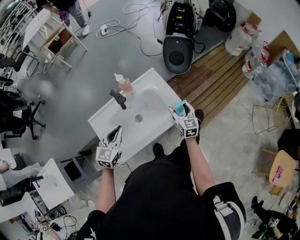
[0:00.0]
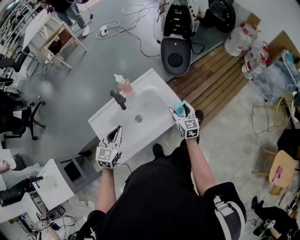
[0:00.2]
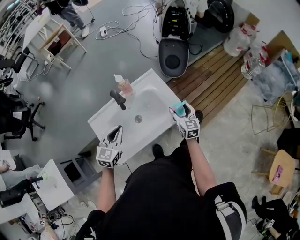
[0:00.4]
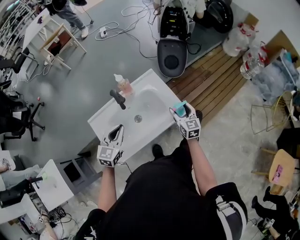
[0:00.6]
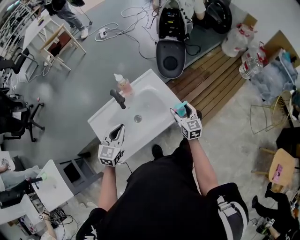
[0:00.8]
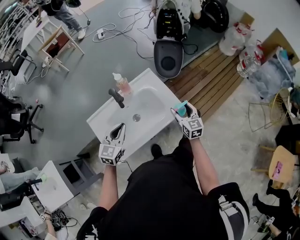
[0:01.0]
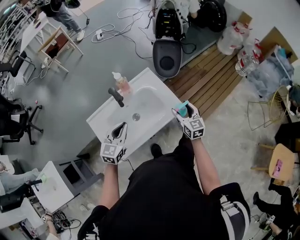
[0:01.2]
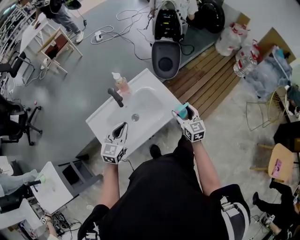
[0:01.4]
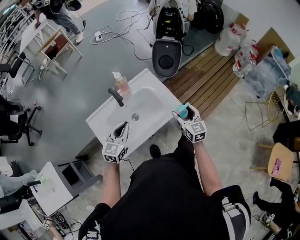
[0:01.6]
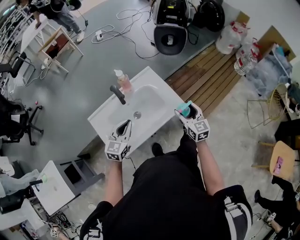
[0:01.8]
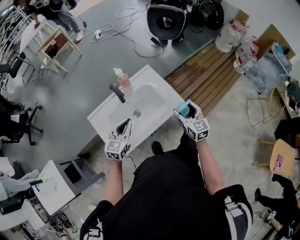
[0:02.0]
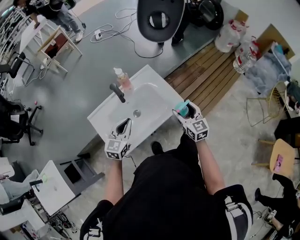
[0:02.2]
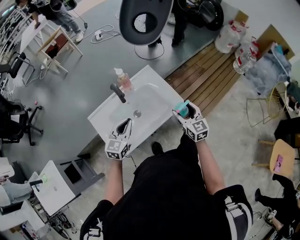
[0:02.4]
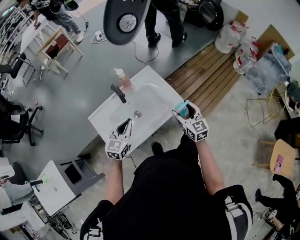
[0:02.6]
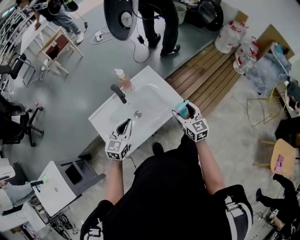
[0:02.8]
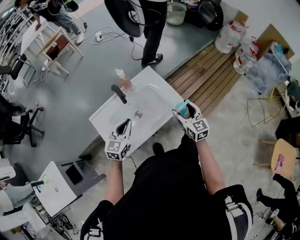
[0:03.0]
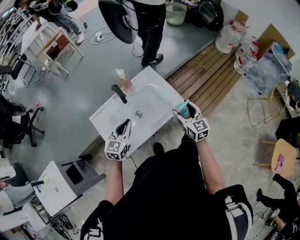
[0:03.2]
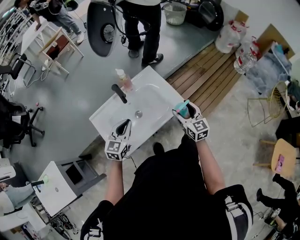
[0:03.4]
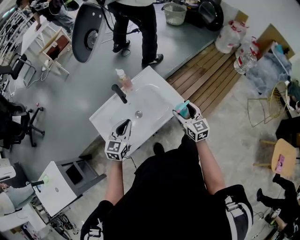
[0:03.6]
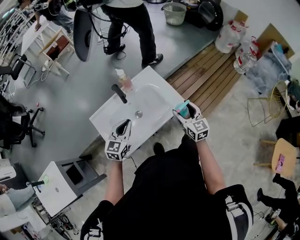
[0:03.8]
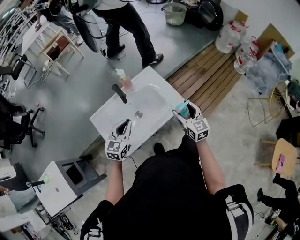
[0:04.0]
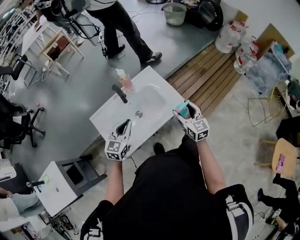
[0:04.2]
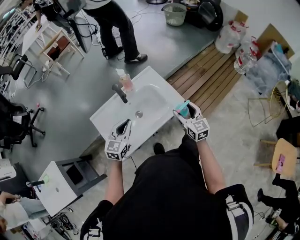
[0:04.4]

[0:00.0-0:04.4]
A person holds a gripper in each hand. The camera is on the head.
0:00.0 to 0:01.4: The right gripper shifts roughly 10 cm backward and upward.
0:01.4 to 0:03.0: The right gripper shifts by roughly 5 cm.
0:03.0 to 0:04.4: Both grippers stay about where they are.

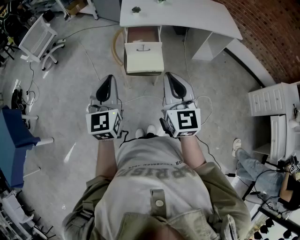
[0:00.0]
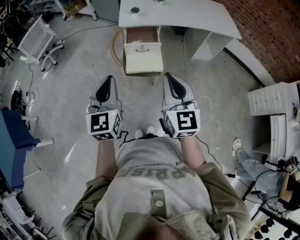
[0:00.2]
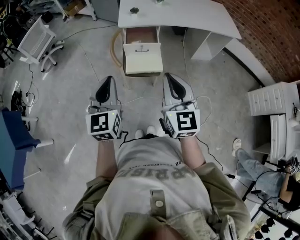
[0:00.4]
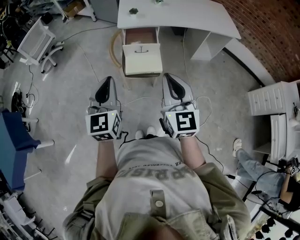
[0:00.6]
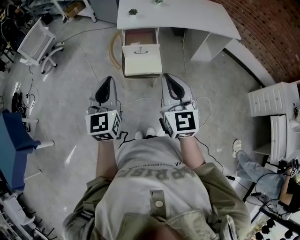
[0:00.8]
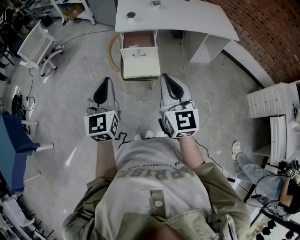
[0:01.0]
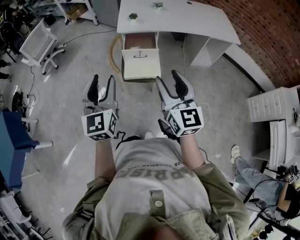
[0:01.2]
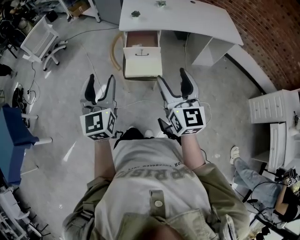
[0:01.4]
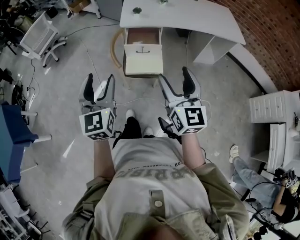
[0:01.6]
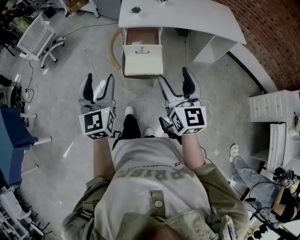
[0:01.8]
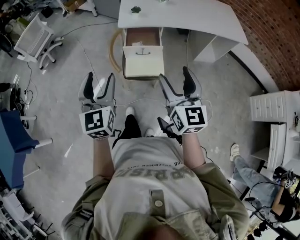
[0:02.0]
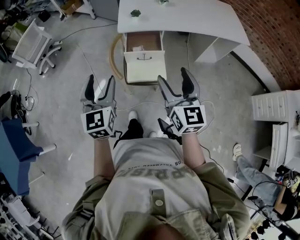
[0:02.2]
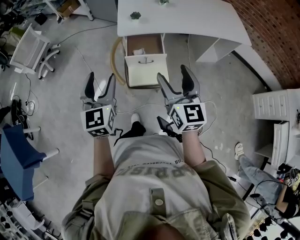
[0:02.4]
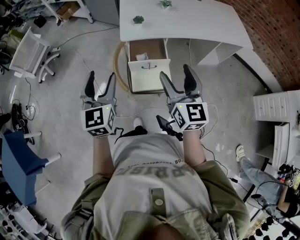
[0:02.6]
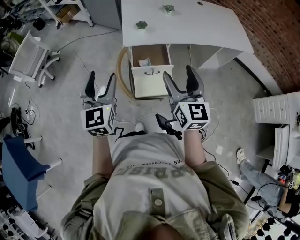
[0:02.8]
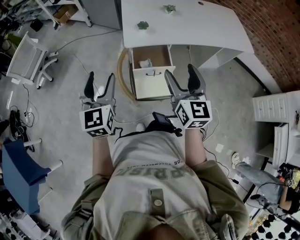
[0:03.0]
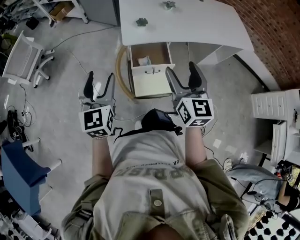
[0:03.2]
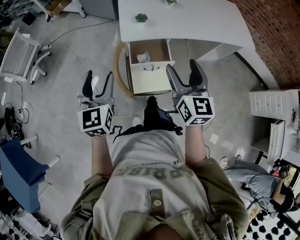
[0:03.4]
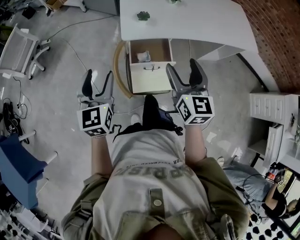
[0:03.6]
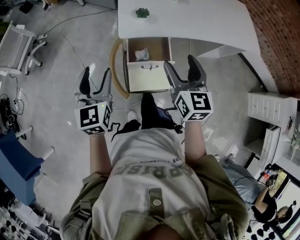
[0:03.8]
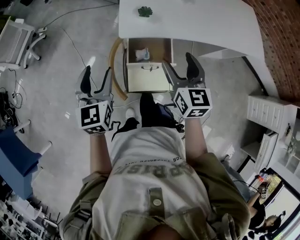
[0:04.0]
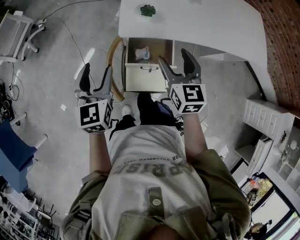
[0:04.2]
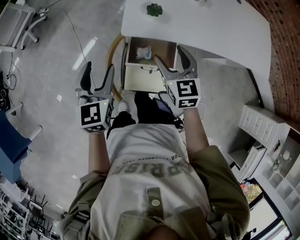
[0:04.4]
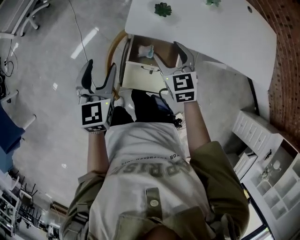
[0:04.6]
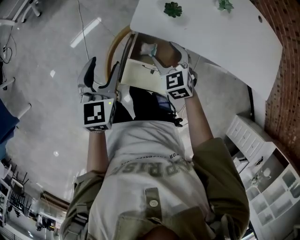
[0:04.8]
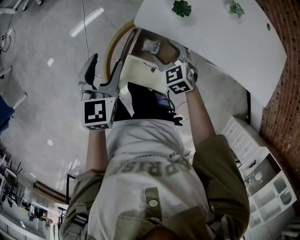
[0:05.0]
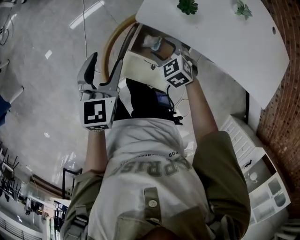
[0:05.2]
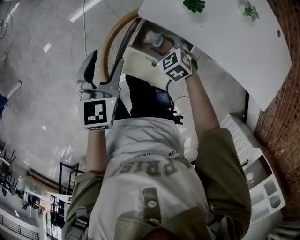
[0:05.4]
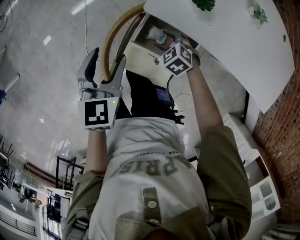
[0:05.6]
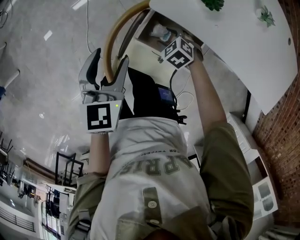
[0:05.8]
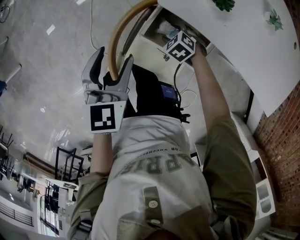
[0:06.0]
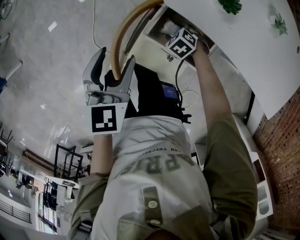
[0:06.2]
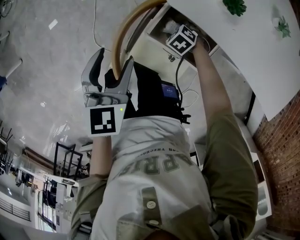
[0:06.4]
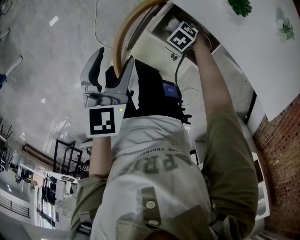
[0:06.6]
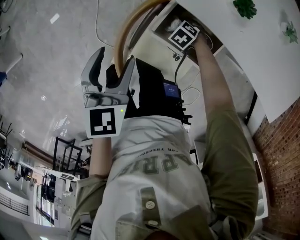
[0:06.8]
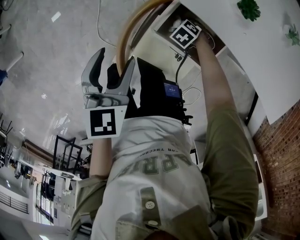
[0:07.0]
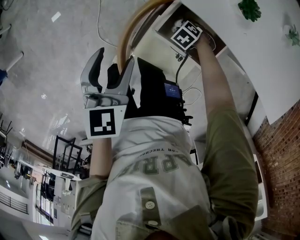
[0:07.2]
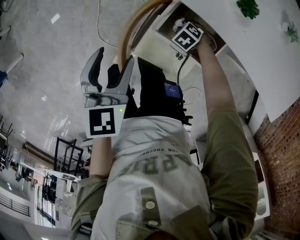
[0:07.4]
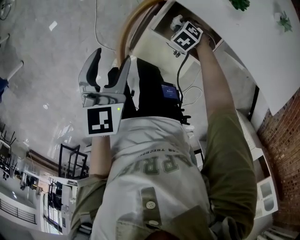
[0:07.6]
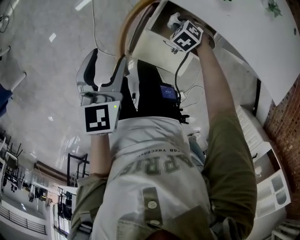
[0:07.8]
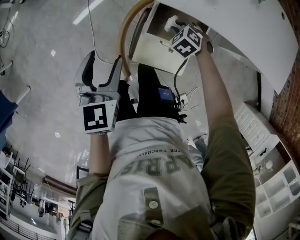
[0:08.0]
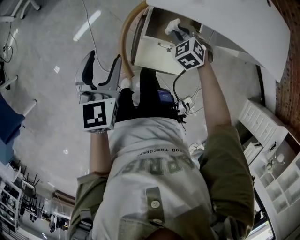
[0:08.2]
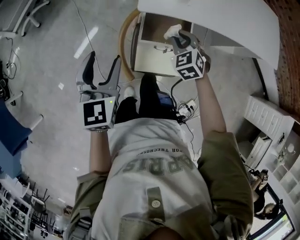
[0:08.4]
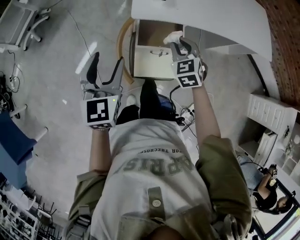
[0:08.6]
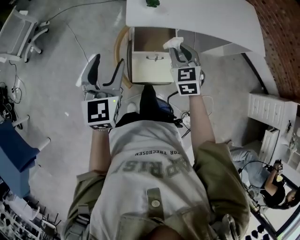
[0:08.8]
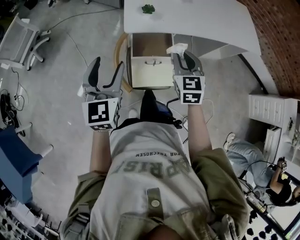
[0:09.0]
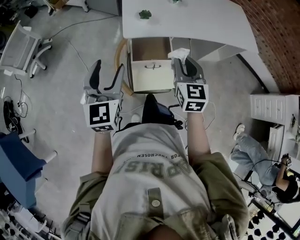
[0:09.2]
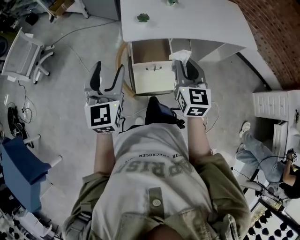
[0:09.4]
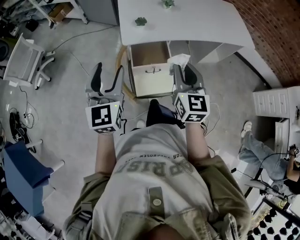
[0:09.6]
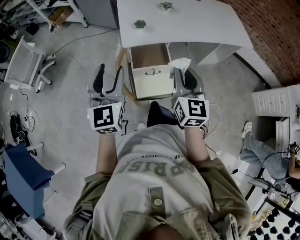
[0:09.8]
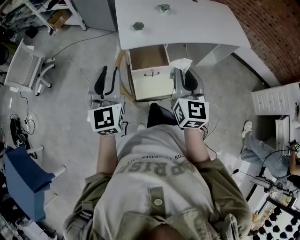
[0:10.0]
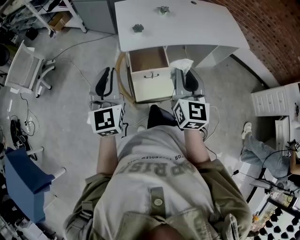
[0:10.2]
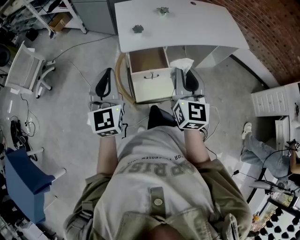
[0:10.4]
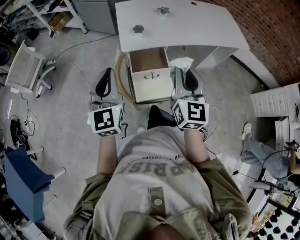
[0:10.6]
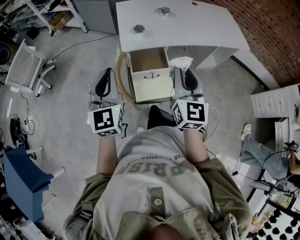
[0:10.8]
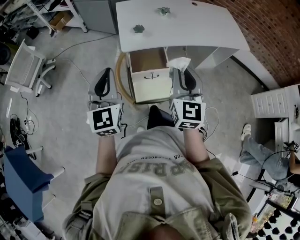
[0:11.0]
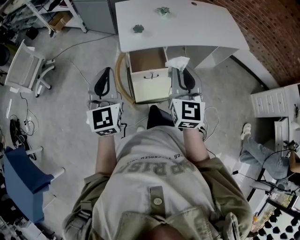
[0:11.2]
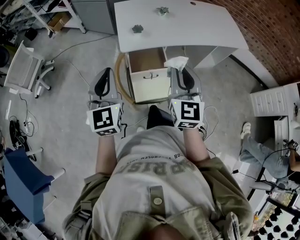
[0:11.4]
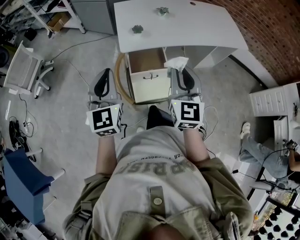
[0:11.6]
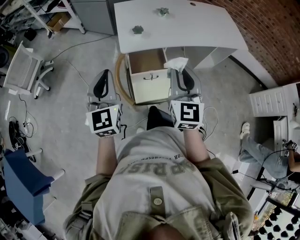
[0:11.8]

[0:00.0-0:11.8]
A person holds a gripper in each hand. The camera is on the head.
0:00.0 to 0:01.4: The right gripper ends up approximately 5 cm from where it was, and opens up. The left gripper opens its fingers.
0:01.4 to 0:03.0: The two grippers go some 30 cm forward.
0:03.0 to 0:04.4: The two grippers go some 25 cm forward and downward. The right gripper rotates some 30 degrees. Meanwhile the left gripper rotates about 20 degrees.
0:04.4 to 0:06.0: The right gripper heads downward, covering some 35 cm, and points its fingers approximately 50 degrees further downward, while the left gripper heads downward, covering roughly 10 cm.
0:06.0 to 0:07.4: The right gripper is displaced downward by some 5 cm, and closes.
0:07.4 to 0:08.8: The right gripper shifts roughly 40 cm upward, and tips its fingers upward by roughly 60 degrees. Meanwhile the left gripper shifts approximately 20 cm upward, and rotates about 40 degrees.
0:08.8 to 0:10.4: The right gripper heads upward and backward, covering some 20 cm, and points its fingers some 30 degrees further upward; the left gripper heads upward, covering about 10 cm, and closes.
0:10.4 to 0:11.8: The grippers move only a little.

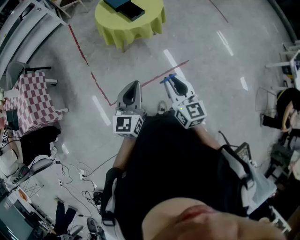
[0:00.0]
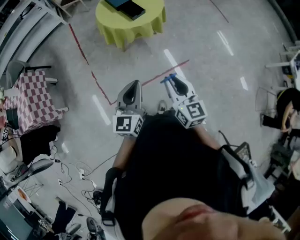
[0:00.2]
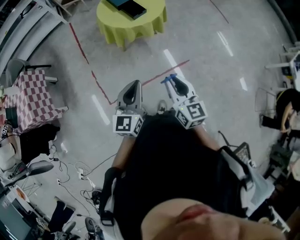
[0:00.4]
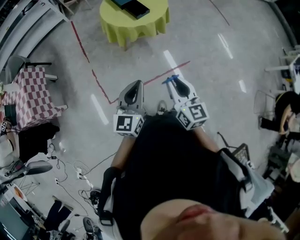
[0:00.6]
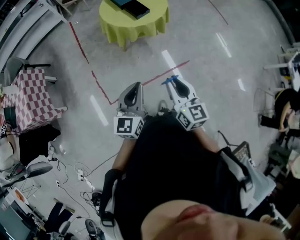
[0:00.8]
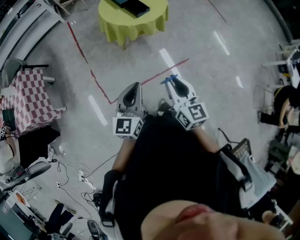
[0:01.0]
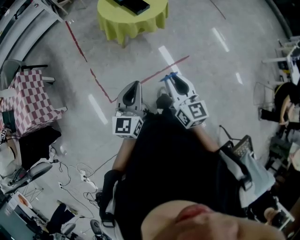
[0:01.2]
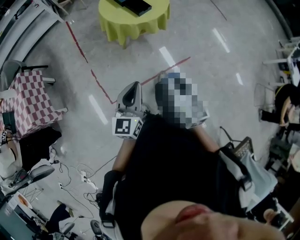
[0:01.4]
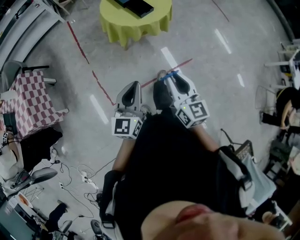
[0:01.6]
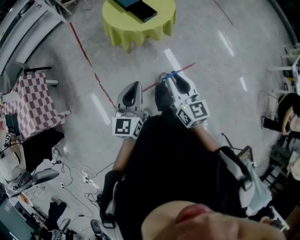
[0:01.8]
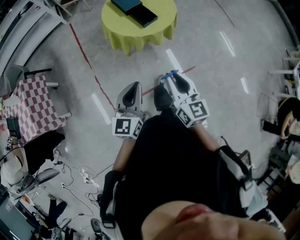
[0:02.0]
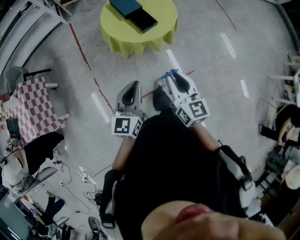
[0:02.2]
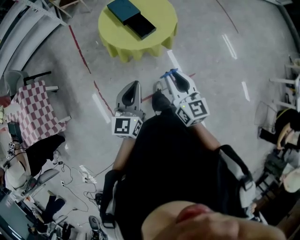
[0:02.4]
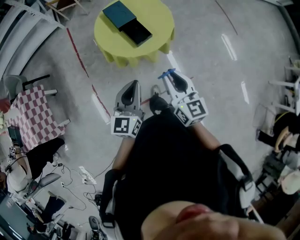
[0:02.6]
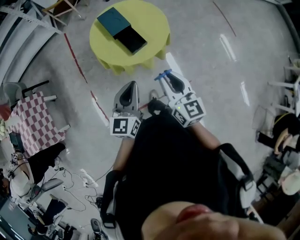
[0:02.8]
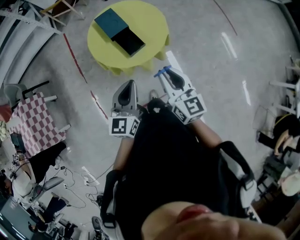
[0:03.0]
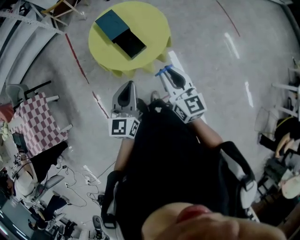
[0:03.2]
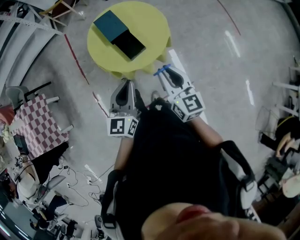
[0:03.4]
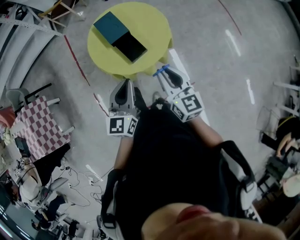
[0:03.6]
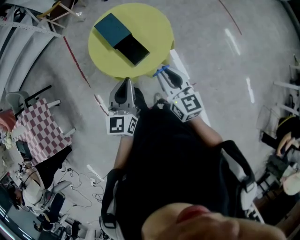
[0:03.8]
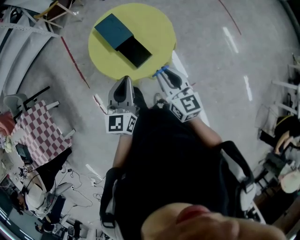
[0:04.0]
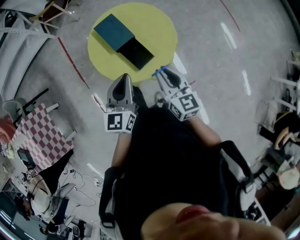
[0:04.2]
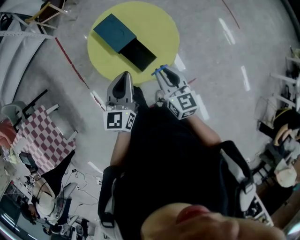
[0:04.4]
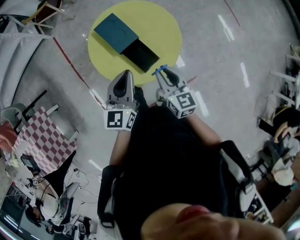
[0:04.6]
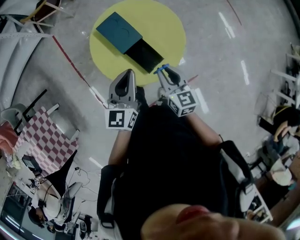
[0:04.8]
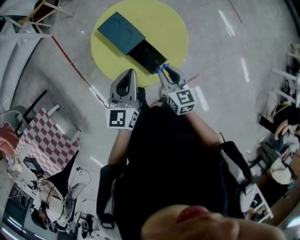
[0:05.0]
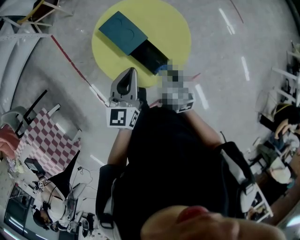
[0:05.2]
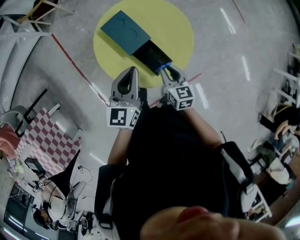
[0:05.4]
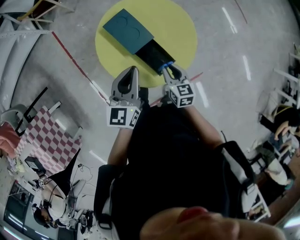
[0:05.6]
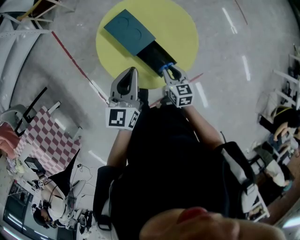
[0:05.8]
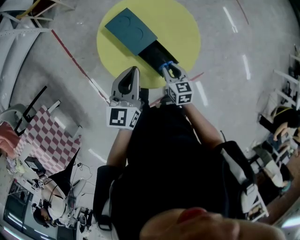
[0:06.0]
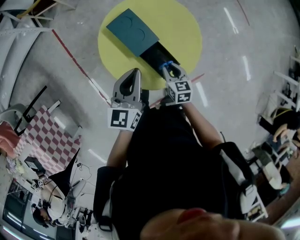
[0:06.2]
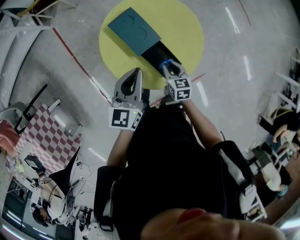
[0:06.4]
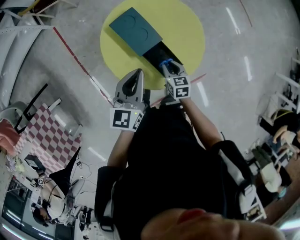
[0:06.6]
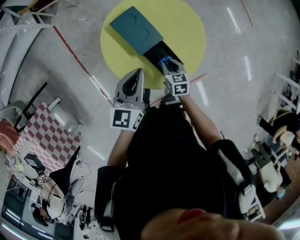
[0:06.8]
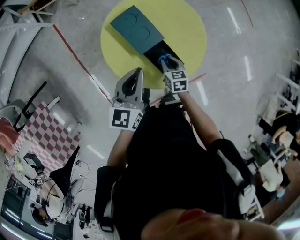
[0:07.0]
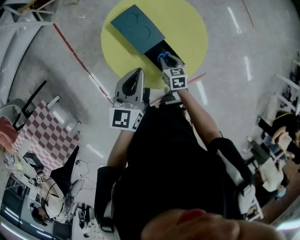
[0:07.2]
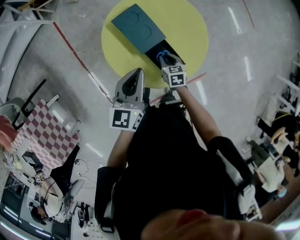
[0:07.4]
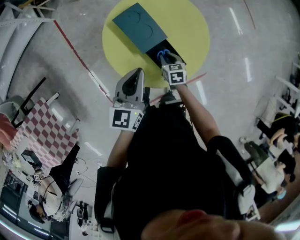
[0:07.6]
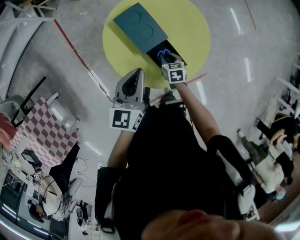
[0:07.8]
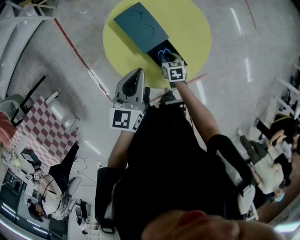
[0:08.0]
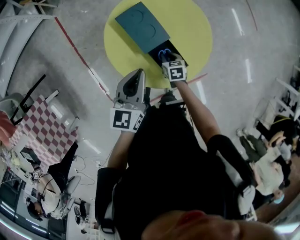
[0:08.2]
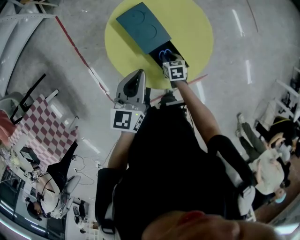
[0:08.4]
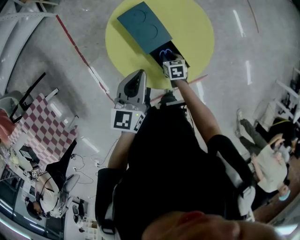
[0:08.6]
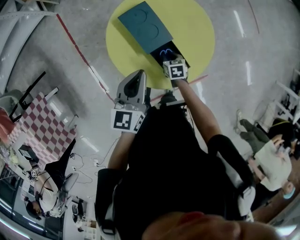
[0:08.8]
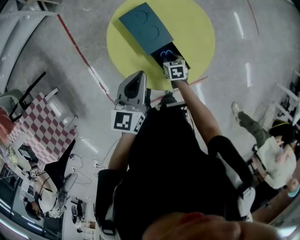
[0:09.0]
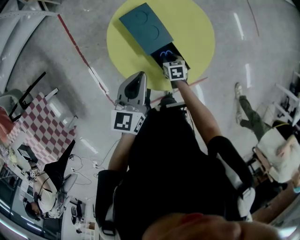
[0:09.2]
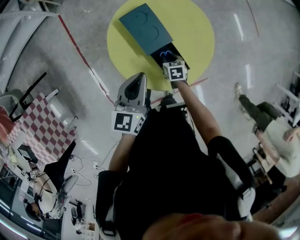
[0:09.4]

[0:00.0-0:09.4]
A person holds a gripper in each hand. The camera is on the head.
0:00.0 to 0:01.6: The two grippers go approximately 10 cm to the left.
0:01.6 to 0:03.2: Both grippers travel together forward, roughly 40 cm.
0:03.2 to 0:04.8: The left gripper moves forward and to the left, roughly 25 cm. The right gripper travels forward, downward and to the left by approximately 25 cm.
0:04.8 to 0:06.2: The left gripper shifts approximately 5 cm forward and to the left. The right gripper travels downward by about 15 cm.
0:06.2 to 0:07.8: The right gripper shifts approximately 10 cm downward.
0:07.8 to 0:09.4: There are only small adjustments of the grippers.
